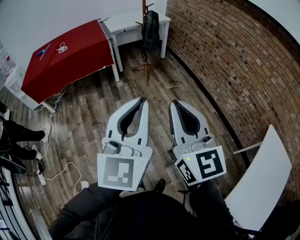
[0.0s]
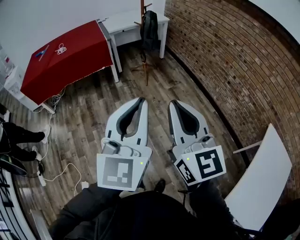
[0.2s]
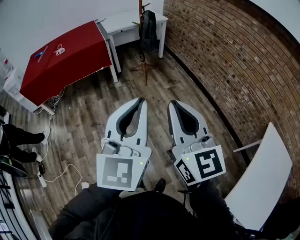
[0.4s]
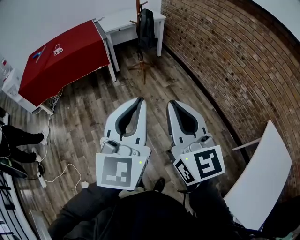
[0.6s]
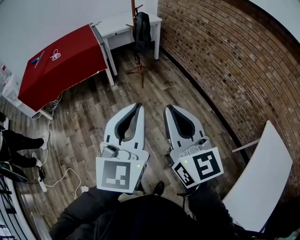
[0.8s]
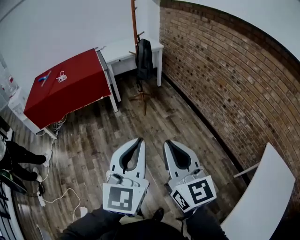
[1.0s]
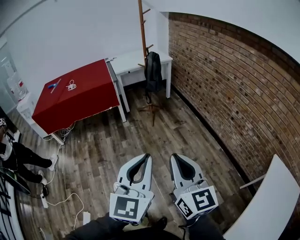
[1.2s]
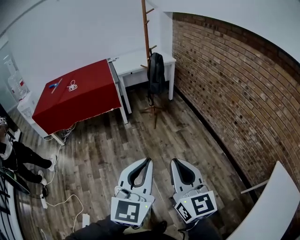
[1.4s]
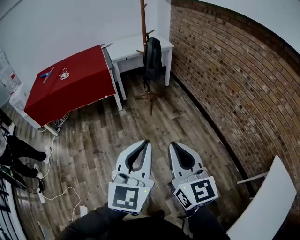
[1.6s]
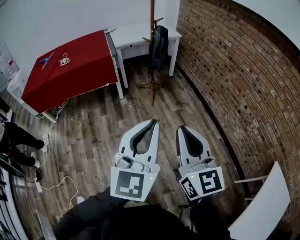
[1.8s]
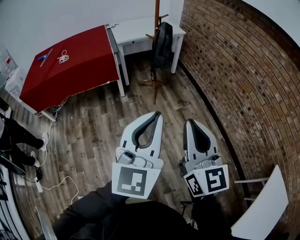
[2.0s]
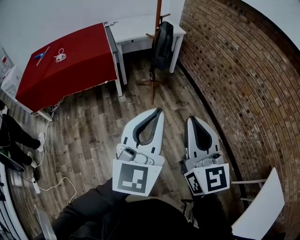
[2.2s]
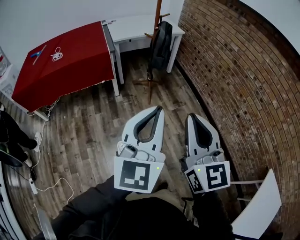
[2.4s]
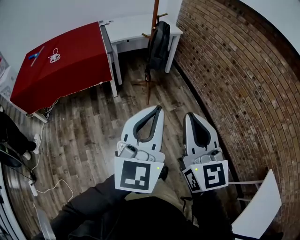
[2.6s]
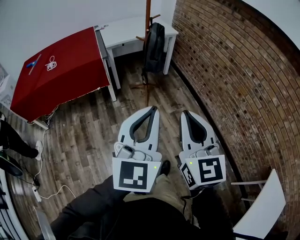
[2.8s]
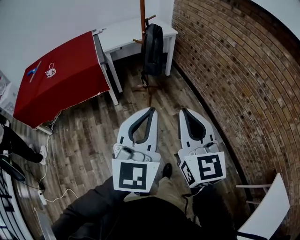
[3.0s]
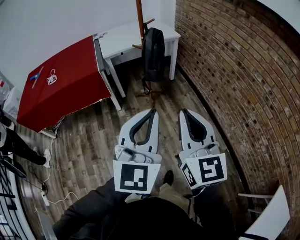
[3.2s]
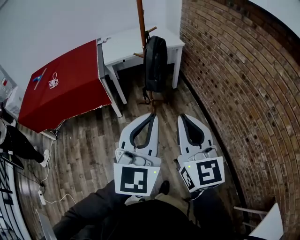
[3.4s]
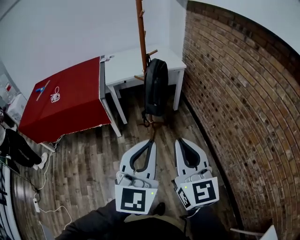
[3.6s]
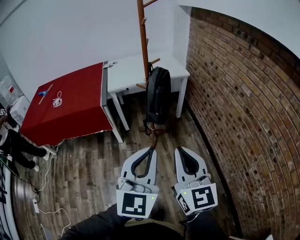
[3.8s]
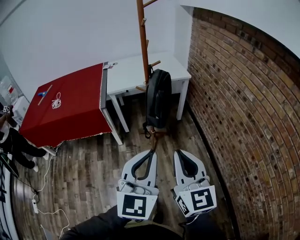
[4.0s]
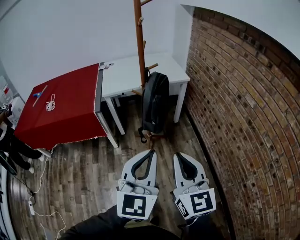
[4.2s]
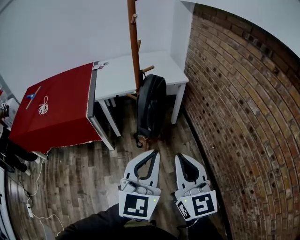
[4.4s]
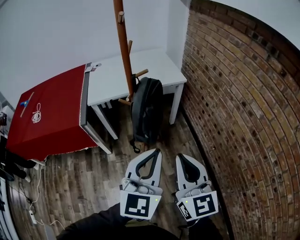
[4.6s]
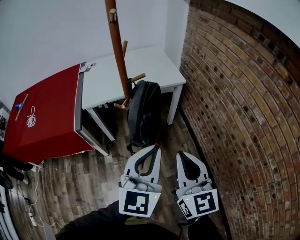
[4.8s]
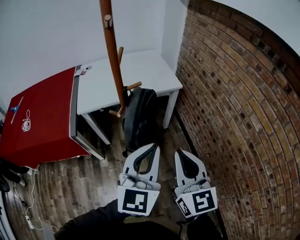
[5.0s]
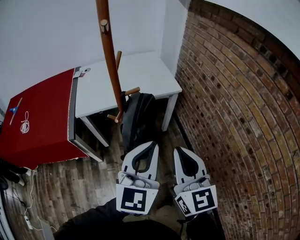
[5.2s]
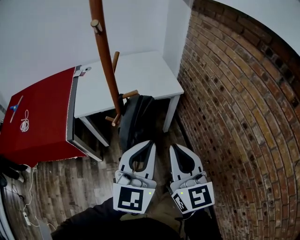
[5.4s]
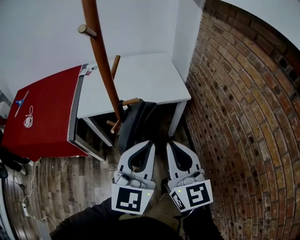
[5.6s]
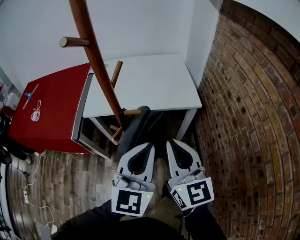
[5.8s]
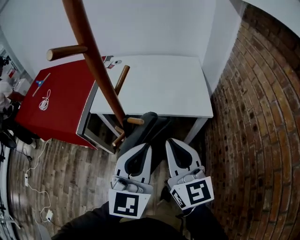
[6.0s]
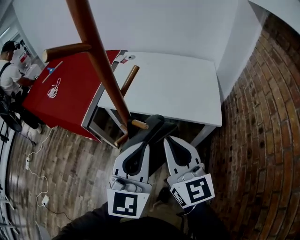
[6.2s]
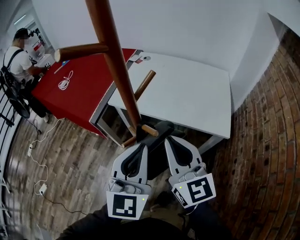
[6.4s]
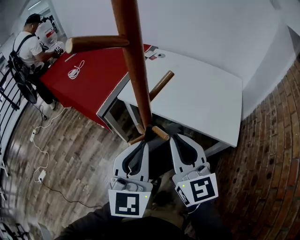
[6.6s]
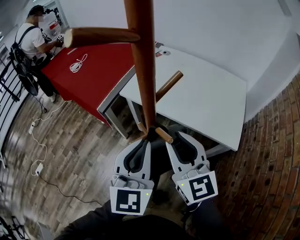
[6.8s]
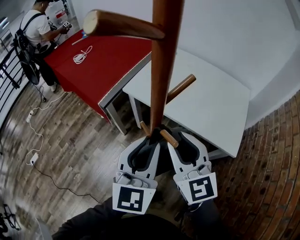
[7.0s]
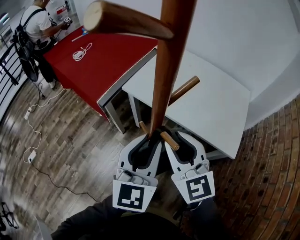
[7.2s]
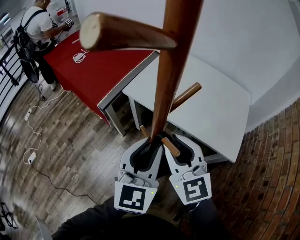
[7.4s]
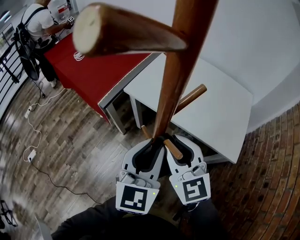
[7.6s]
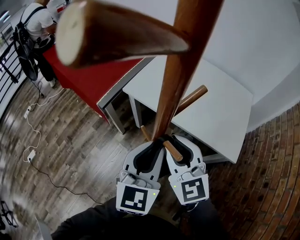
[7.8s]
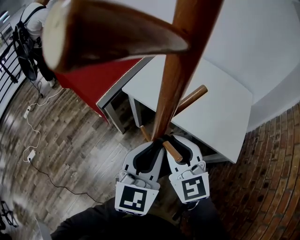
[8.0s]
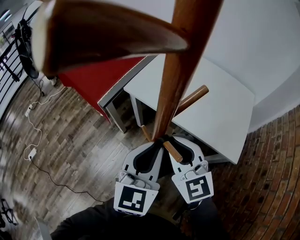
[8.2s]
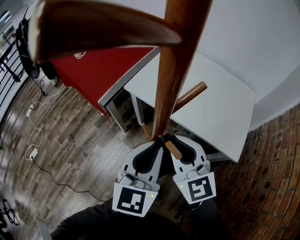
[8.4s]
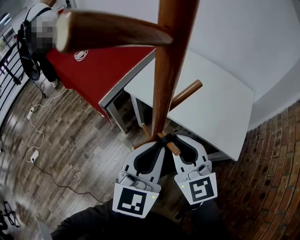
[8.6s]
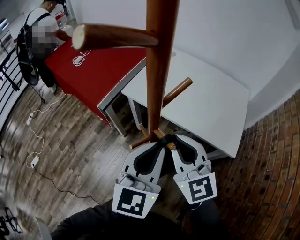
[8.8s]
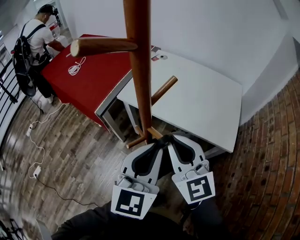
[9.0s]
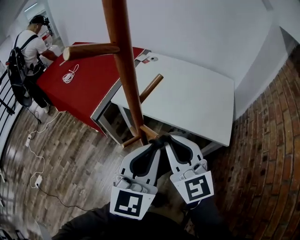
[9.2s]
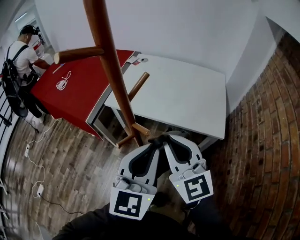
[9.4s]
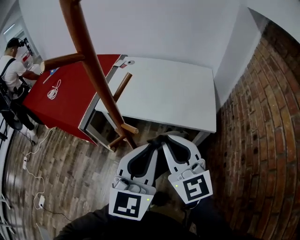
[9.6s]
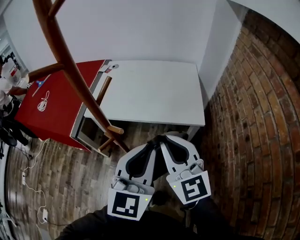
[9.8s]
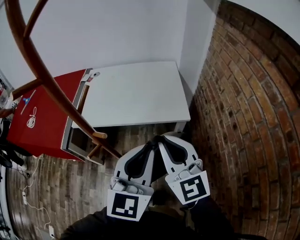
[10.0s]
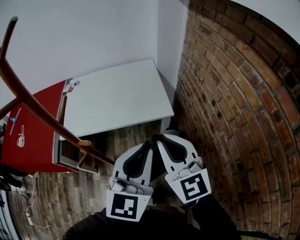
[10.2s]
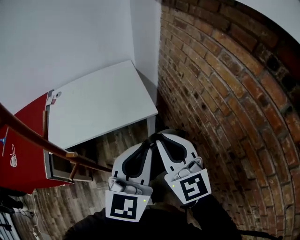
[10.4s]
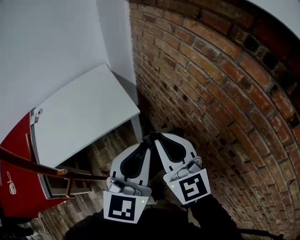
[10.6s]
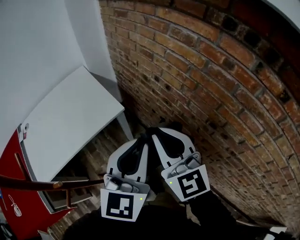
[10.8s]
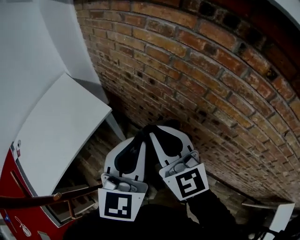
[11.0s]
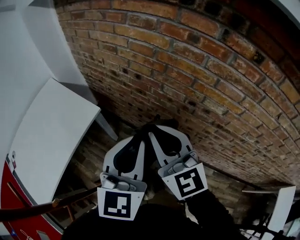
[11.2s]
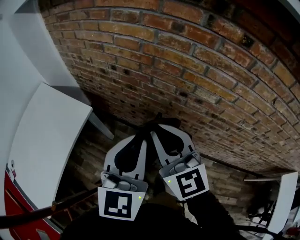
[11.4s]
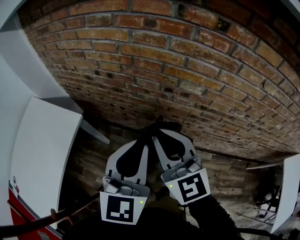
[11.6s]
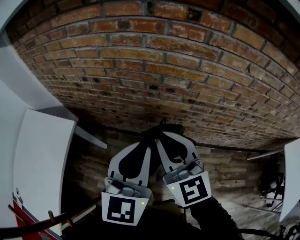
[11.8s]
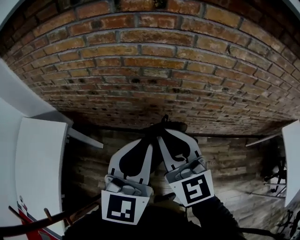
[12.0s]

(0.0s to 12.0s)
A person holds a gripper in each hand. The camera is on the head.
0.0s - 1.6s: The two grippers go some 10 cm forward, downward and to the right.
1.6s - 3.0s: Both grippers move forward, some 30 cm.
3.0s - 4.4s: Both grippers travel together forward, some 35 cm.
4.4s - 6.0s: The left gripper shifts by approximately 35 cm, and swivels approximately 20 degrees; the right gripper ends up approximately 40 cm from where it was, and rotates approximately 20 degrees.
6.0s - 7.6s: The left gripper shifts by about 15 cm, rotates about 20 degrees, and opens up; the right gripper ends up some 15 cm from where it was, swivels some 40 degrees, and opens up.
7.6s - 9.0s: The left gripper ends up roughly 5 cm from where it was, while the right gripper shifts roughly 5 cm upward.
9.0s - 10.4s: The right gripper moves roughly 25 cm, and rotates roughly 50 degrees, while the left gripper moves approximately 25 cm, and swivels about 40 degrees.
10.4s - 12.0s: The right gripper changes place by approximately 30 cm, and swivels roughly 70 degrees. The left gripper shifts by approximately 25 cm, and swivels some 60 degrees.

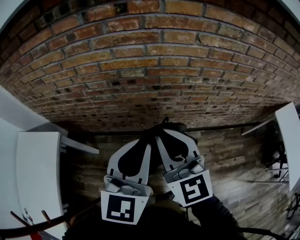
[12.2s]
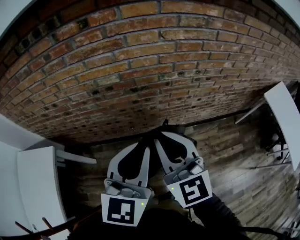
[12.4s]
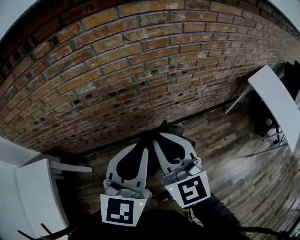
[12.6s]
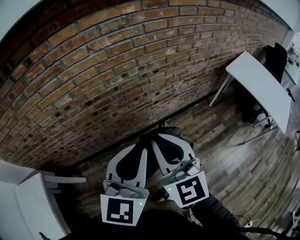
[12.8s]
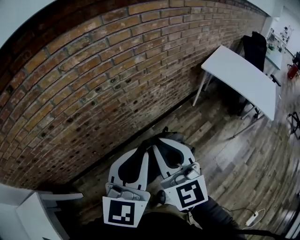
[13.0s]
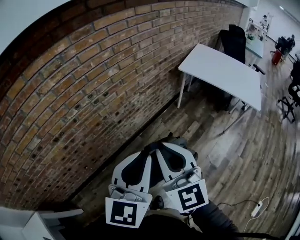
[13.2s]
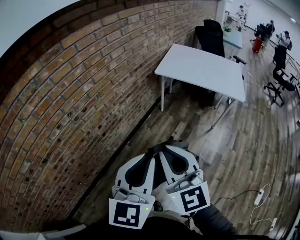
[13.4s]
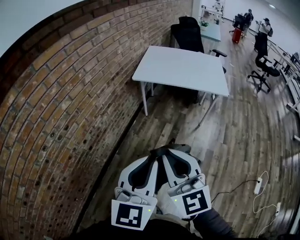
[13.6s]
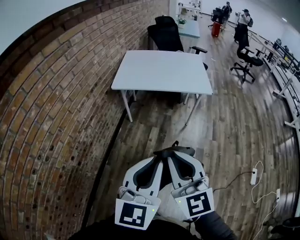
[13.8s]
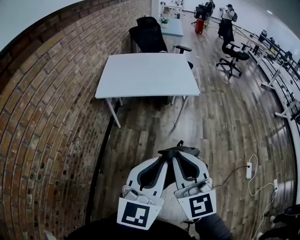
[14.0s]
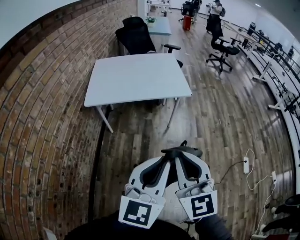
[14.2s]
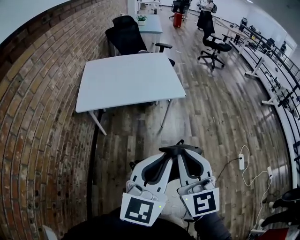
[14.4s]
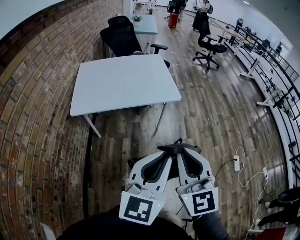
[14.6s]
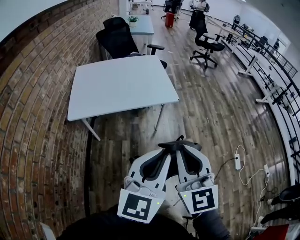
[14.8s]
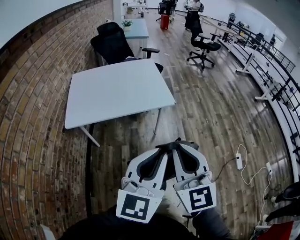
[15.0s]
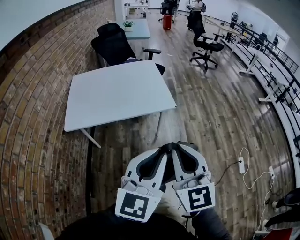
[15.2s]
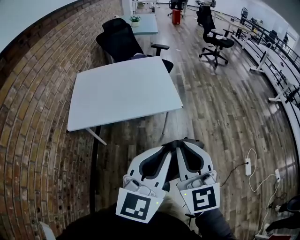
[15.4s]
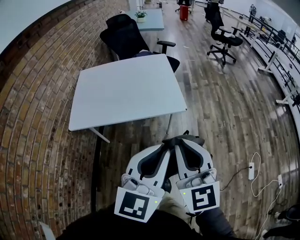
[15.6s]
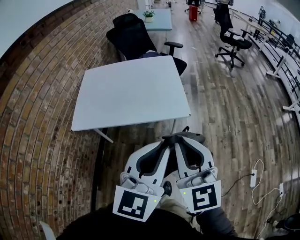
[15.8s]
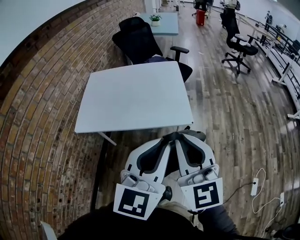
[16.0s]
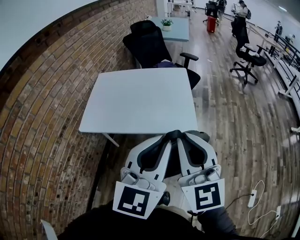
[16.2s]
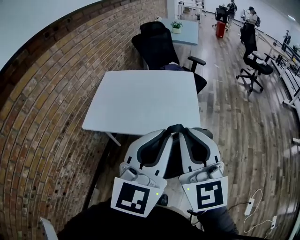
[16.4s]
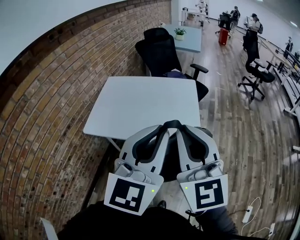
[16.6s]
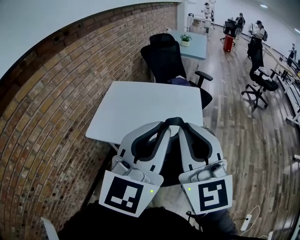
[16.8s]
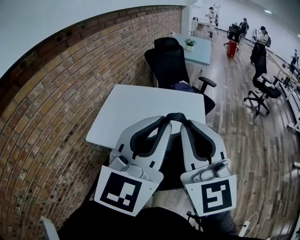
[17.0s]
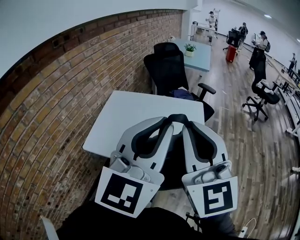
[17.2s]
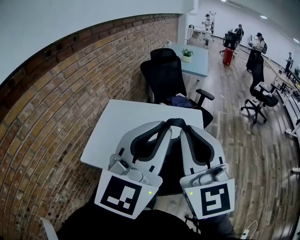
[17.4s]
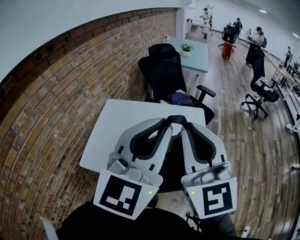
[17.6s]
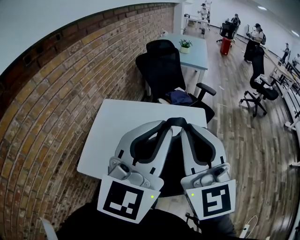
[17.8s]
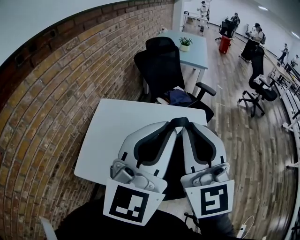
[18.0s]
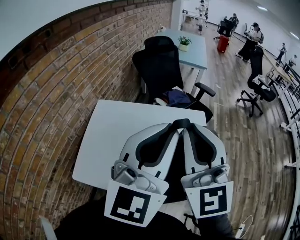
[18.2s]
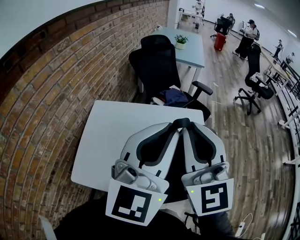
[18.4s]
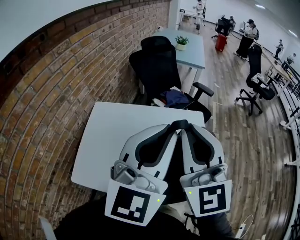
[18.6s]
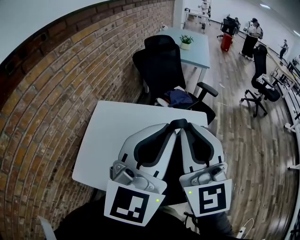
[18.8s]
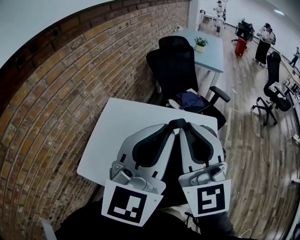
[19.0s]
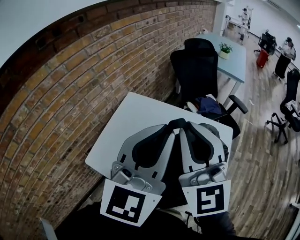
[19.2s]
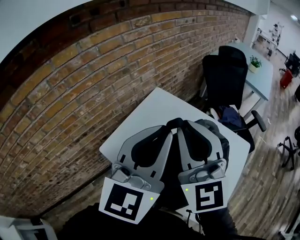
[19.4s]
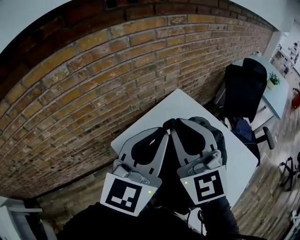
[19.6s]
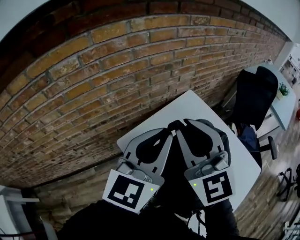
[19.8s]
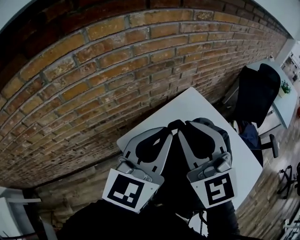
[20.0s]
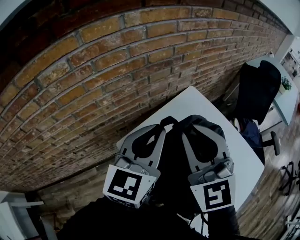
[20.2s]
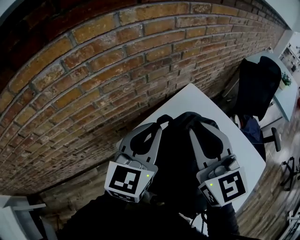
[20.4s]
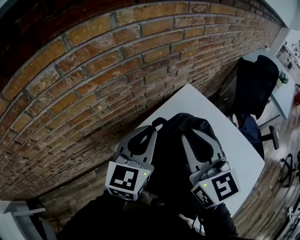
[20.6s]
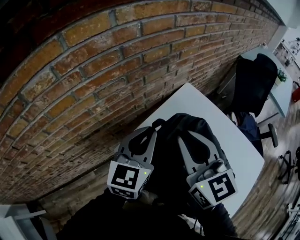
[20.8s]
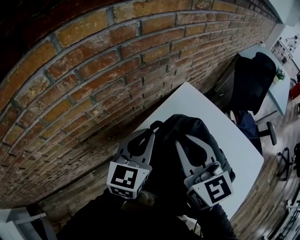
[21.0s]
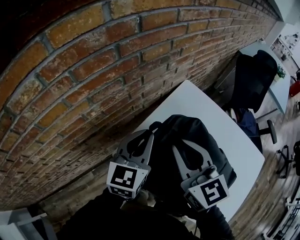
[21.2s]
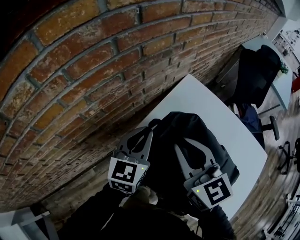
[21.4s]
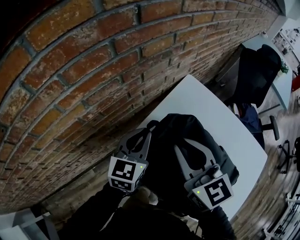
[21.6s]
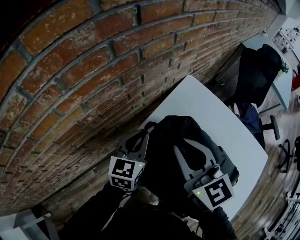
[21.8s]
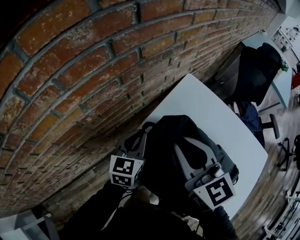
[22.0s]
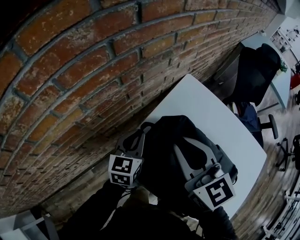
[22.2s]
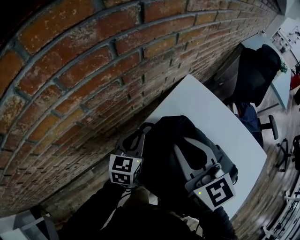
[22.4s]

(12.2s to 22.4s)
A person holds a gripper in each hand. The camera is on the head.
12.2s - 13.6s: The two grippers travel together, about 60 cm. The left gripper turns by roughly 70 degrees, while the right gripper turns by about 70 degrees.
13.6s - 15.2s: The right gripper changes place by approximately 35 cm, and changes its angle by about 40 degrees, while the left gripper ends up some 35 cm from where it was, and swivels some 40 degrees.
15.2s - 16.6s: Both grippers travel together forward and upward, about 25 cm. The left gripper turns by some 20 degrees. Meanwhile the right gripper rotates some 20 degrees.
16.6s - 18.0s: The grippers both shift forward by approximately 30 cm.
18.0s - 19.4s: The left gripper shifts by some 15 cm, and turns by approximately 30 degrees; the right gripper ends up roughly 15 cm from where it was, and changes its angle by some 30 degrees.
19.4s - 21.0s: The left gripper travels downward, to the left and forward by some 35 cm, and turns by roughly 20 degrees, while the right gripper moves to the left, forward and downward, about 25 cm, and rotates some 30 degrees.
21.0s - 22.4s: The left gripper heads downward, covering about 15 cm, while the right gripper ends up some 5 cm from where it was.

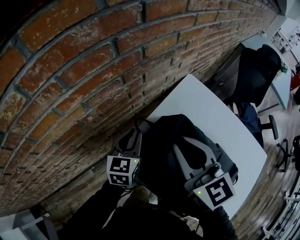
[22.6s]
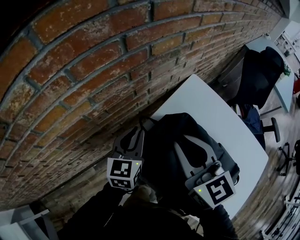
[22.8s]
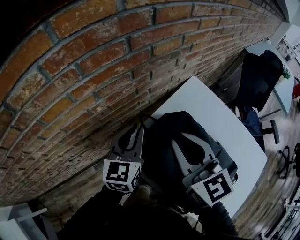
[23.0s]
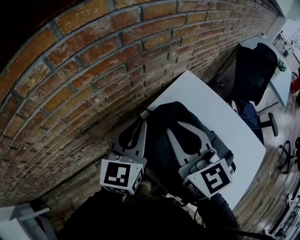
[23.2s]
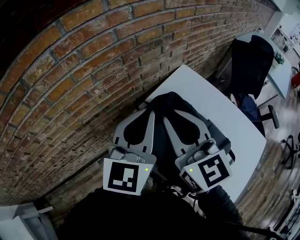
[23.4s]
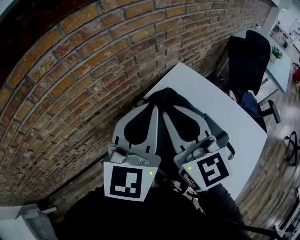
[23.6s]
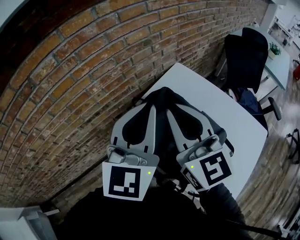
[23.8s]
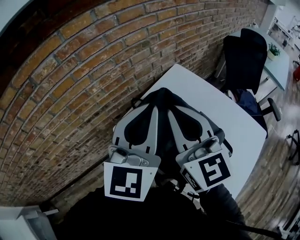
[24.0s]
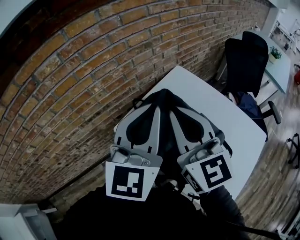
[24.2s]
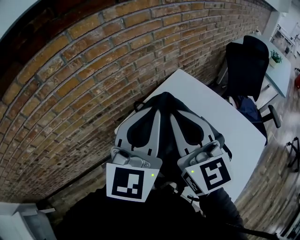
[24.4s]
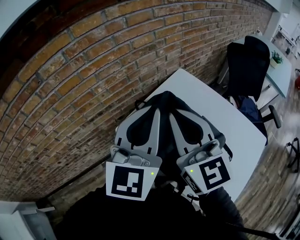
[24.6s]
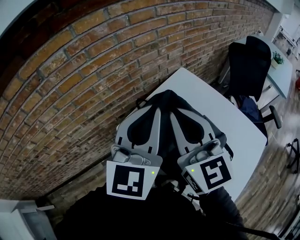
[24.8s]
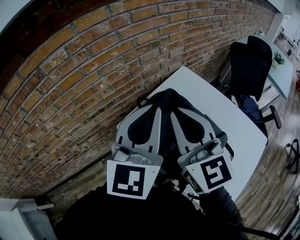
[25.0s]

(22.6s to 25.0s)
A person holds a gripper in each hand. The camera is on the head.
22.6s - 23.8s: The right gripper heads backward and upward, covering about 15 cm. Meanwhile the left gripper shifts approximately 35 cm upward and backward, and turns by some 30 degrees.
23.8s - 25.0s: The grippers make only small movements.
